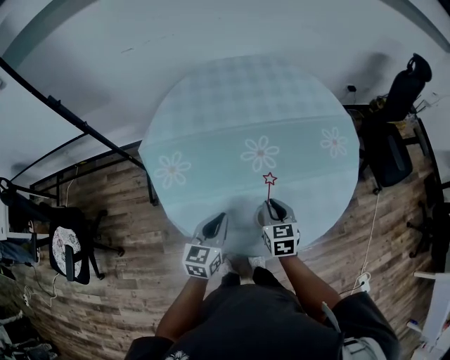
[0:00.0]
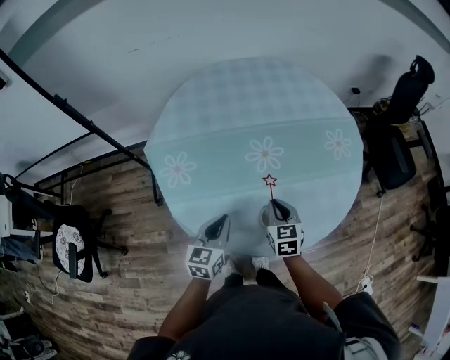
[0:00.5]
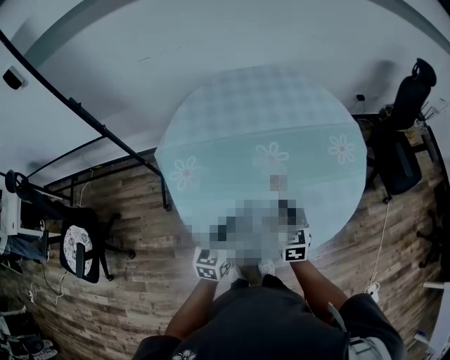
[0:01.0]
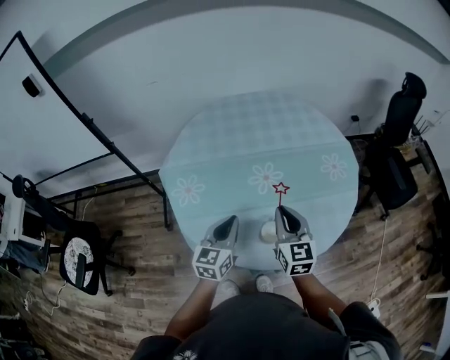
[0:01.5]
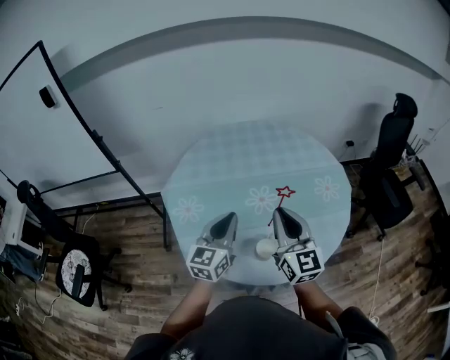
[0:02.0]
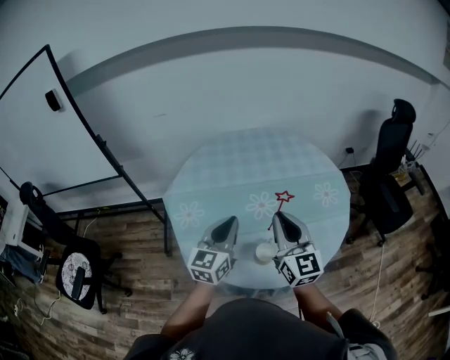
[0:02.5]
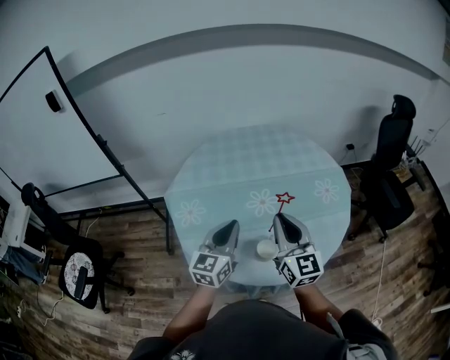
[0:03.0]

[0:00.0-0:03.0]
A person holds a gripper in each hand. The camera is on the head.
0:00.0 to 0:01.5: The right gripper shifts roughly 15 cm upward, and turns by approximately 20 degrees. The left gripper moves upward, some 10 cm.
0:01.5 to 0:03.0: Both grippers travel together upward, some 10 cm.

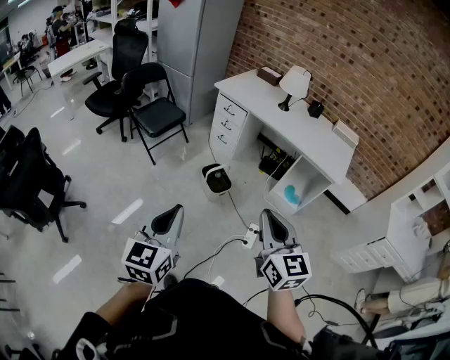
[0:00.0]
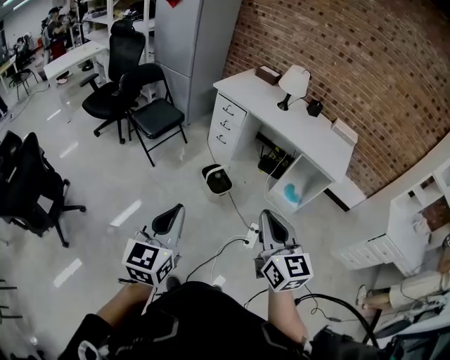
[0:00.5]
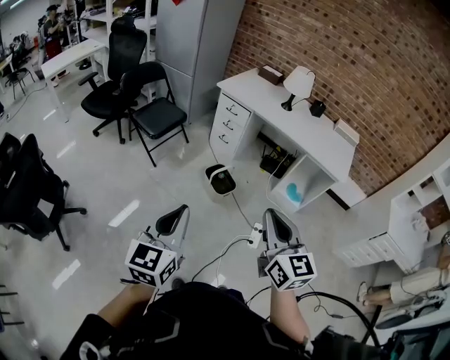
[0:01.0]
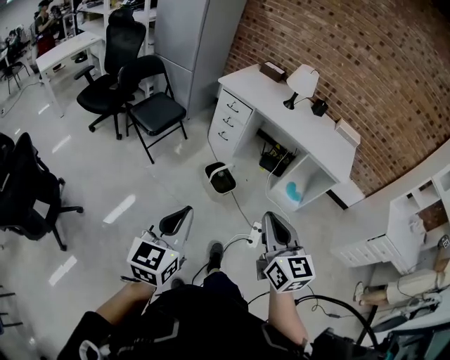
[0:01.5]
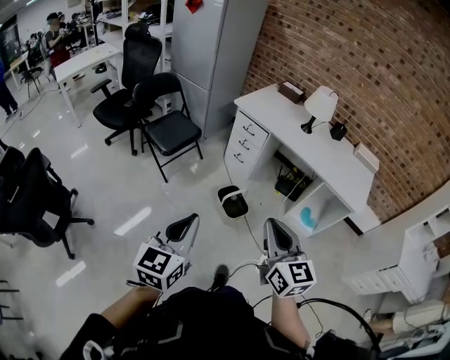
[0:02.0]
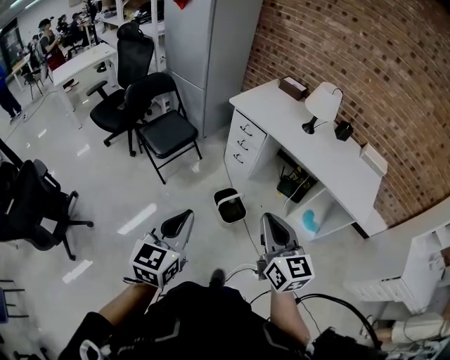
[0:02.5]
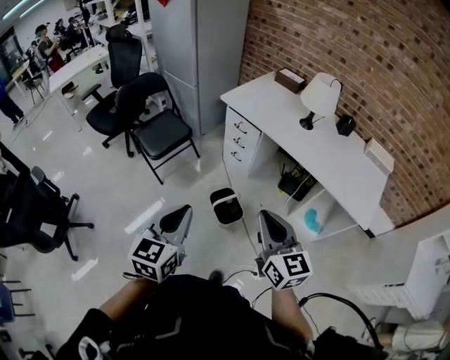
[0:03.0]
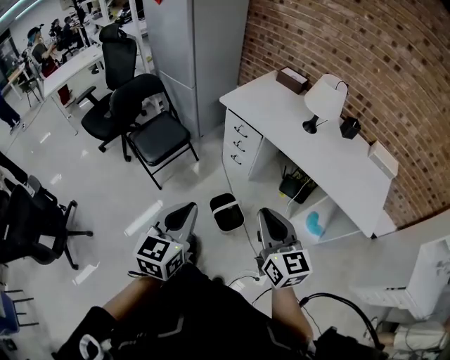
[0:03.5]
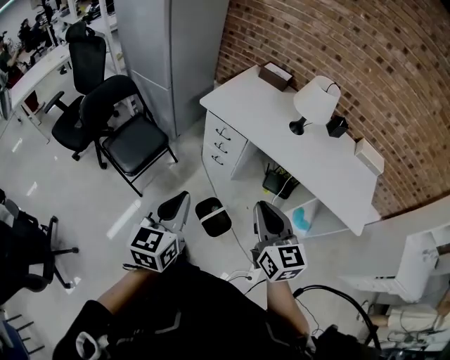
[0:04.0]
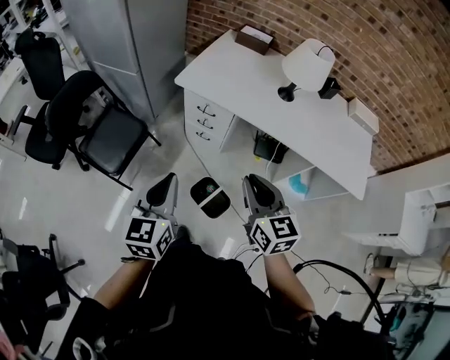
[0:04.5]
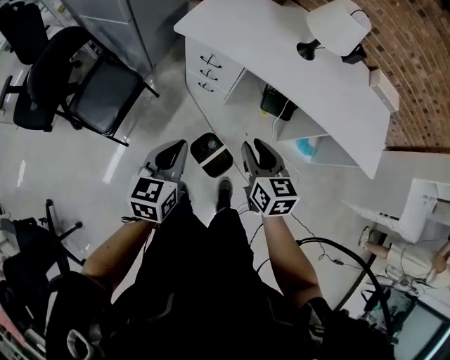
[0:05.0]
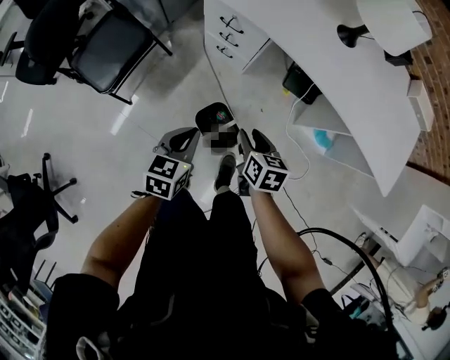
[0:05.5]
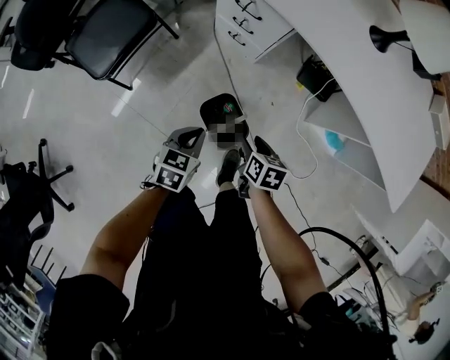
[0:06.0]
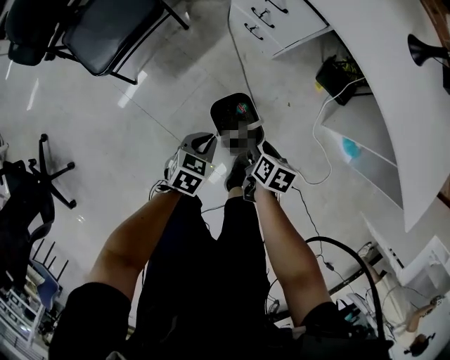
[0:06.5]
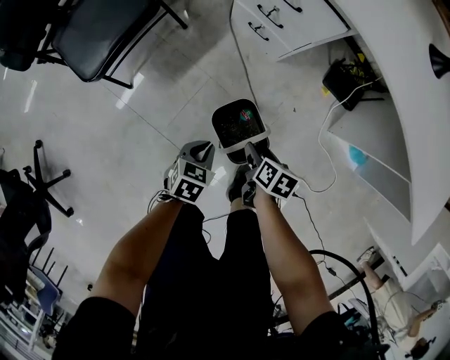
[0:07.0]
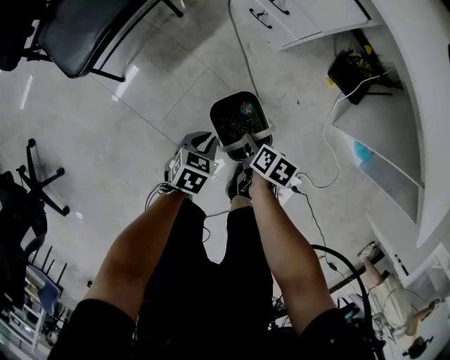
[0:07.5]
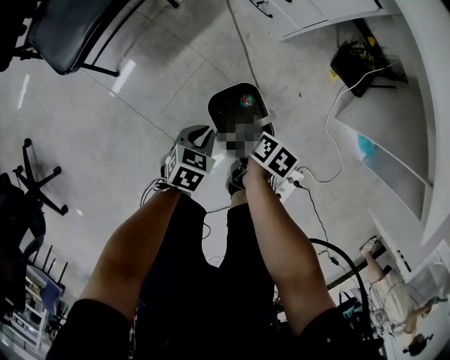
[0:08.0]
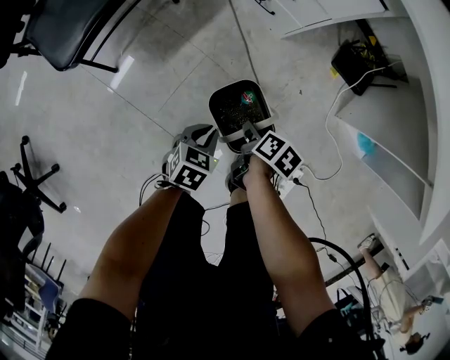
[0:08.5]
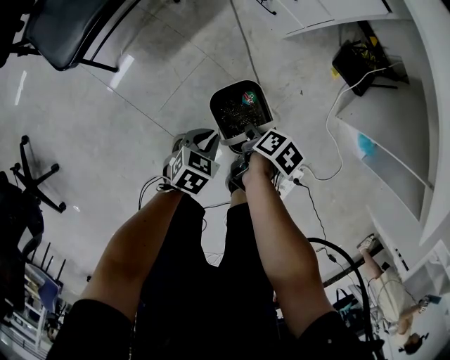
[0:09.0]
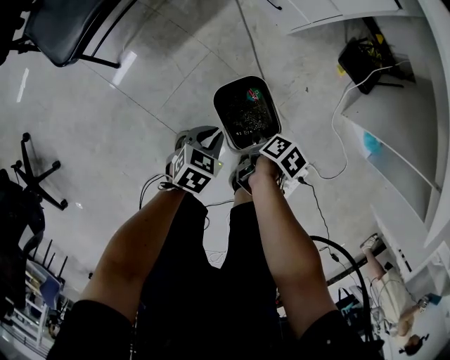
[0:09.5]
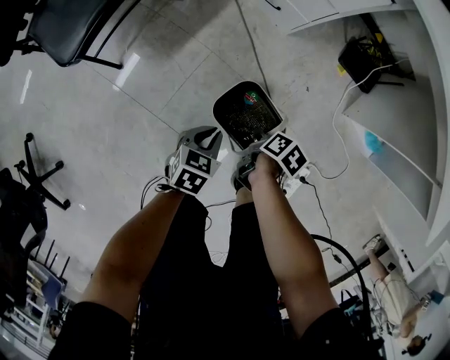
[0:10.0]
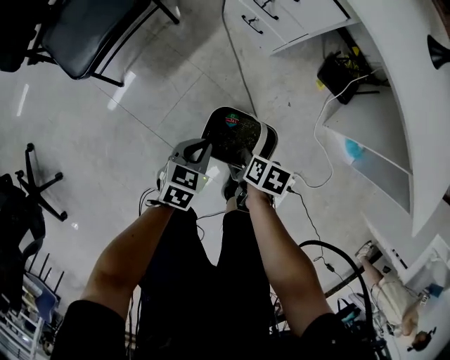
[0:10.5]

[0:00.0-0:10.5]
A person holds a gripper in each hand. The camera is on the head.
0:00.0 to 0:02.0: Both grippers move forward and to the left, approximately 15 cm.
0:02.0 to 0:04.0: Both grippers move forward, some 35 cm.
0:04.0 to 0:06.5: The grippers both shift downward by about 60 cm. The left gripper angles its fingers downward, by approximately 40 degrees, while the right gripper tilts its fingers some 50 degrees downward, and opens up.
0:06.5 to 0:08.5: The grippers both shift downward by approximately 15 cm. The right gripper turns by roughly 20 degrees.
0:08.5 to 0:10.5: The two grippers go some 10 cm upward. The right gripper swivels some 20 degrees, and closes.

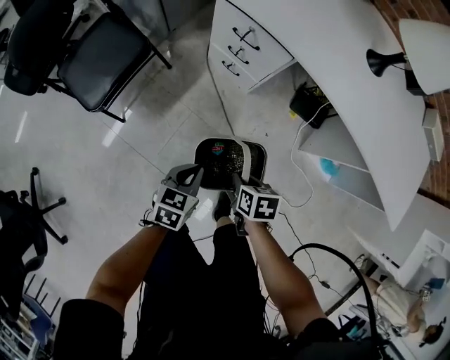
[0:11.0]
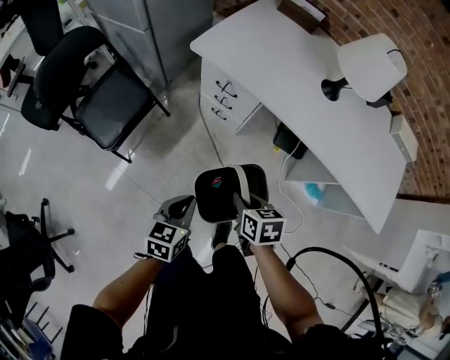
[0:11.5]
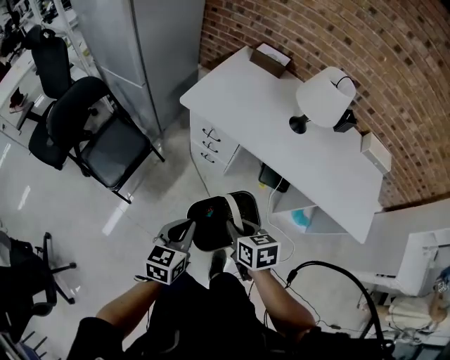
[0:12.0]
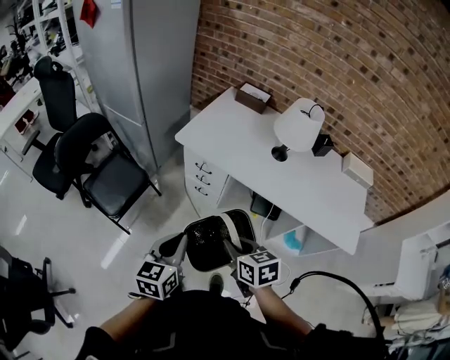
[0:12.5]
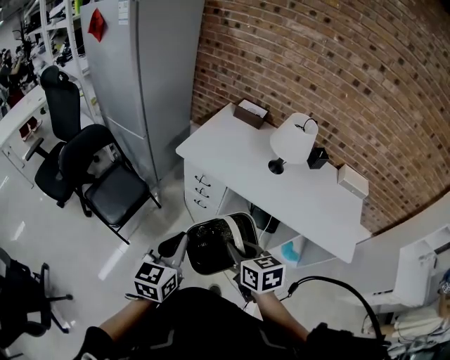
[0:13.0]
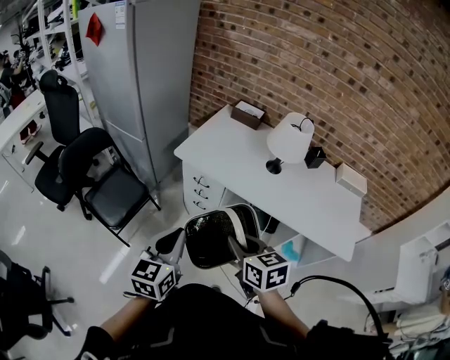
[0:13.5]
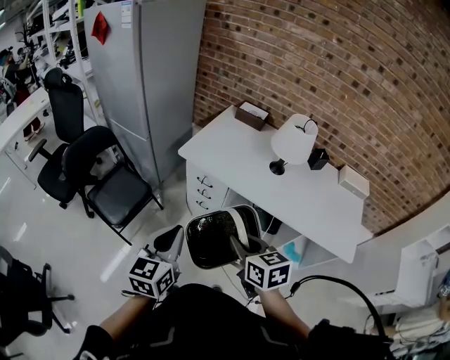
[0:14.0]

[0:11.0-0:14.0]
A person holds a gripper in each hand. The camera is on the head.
0:11.0 to 0:12.5: The two grippers go roughly 40 cm upward. The right gripper changes its angle by about 30 degrees. Meanwhile the left gripper changes its angle by approximately 30 degrees.
0:12.5 to 0:14.0: Both grippers travel together upward, approximately 10 cm.

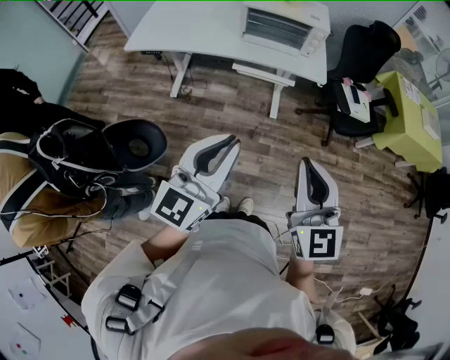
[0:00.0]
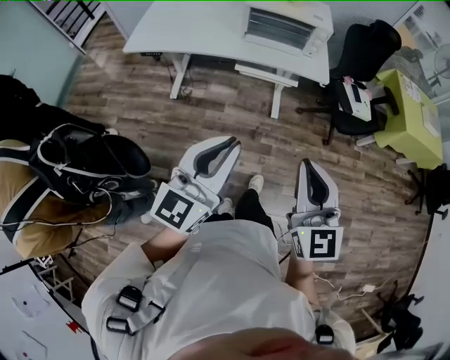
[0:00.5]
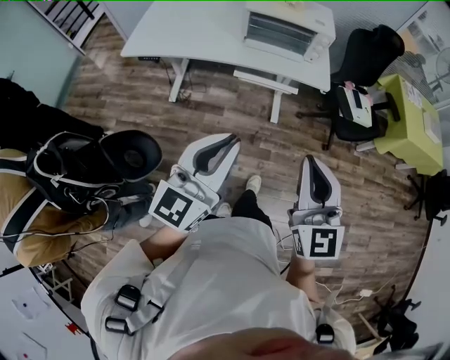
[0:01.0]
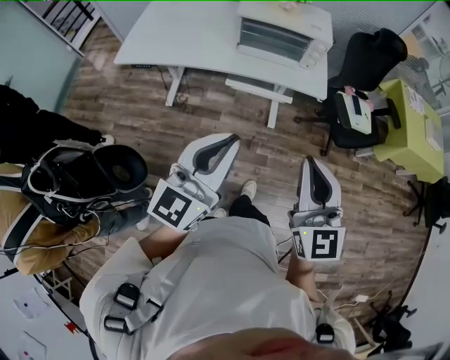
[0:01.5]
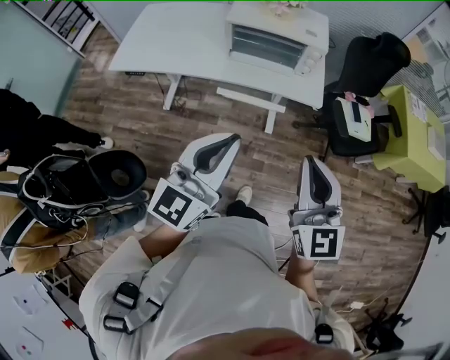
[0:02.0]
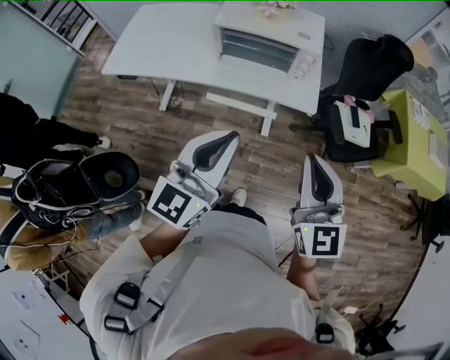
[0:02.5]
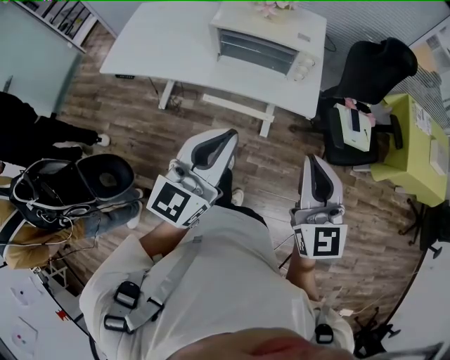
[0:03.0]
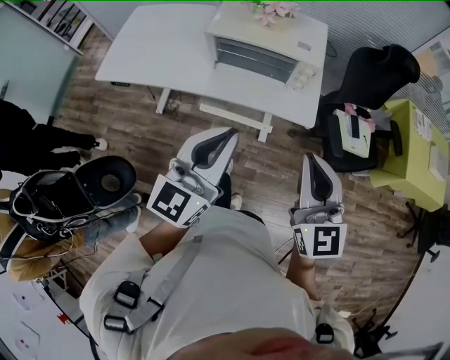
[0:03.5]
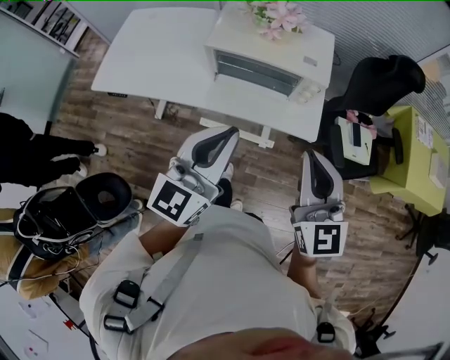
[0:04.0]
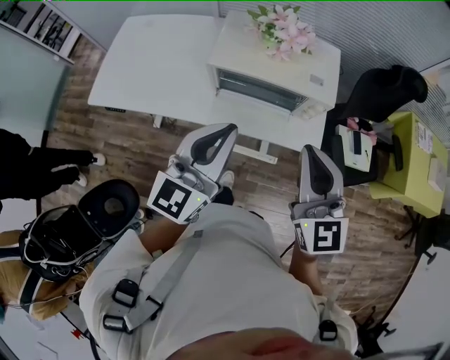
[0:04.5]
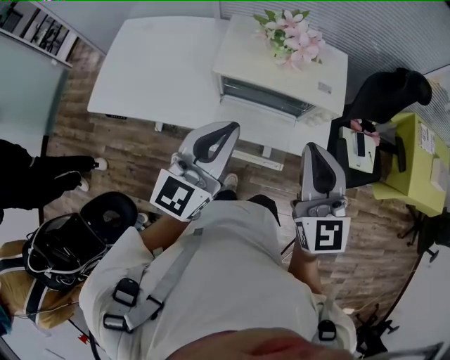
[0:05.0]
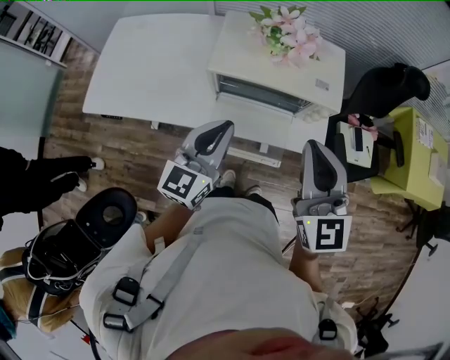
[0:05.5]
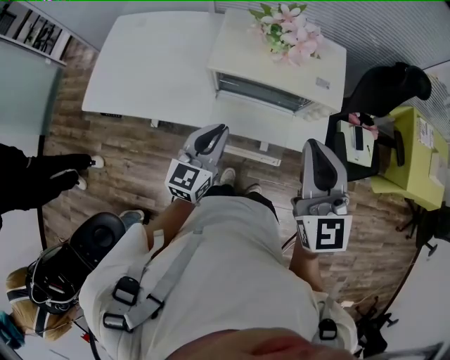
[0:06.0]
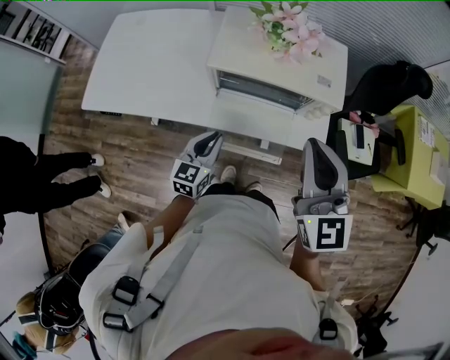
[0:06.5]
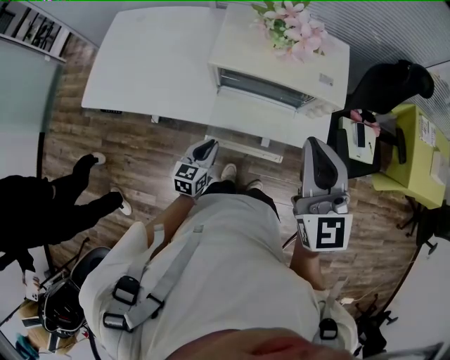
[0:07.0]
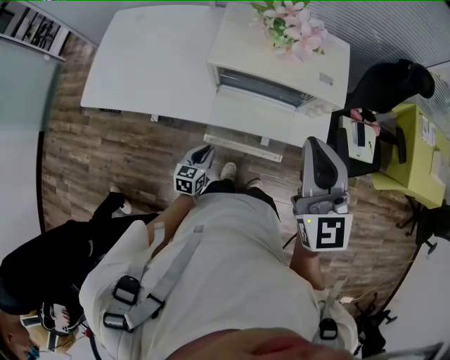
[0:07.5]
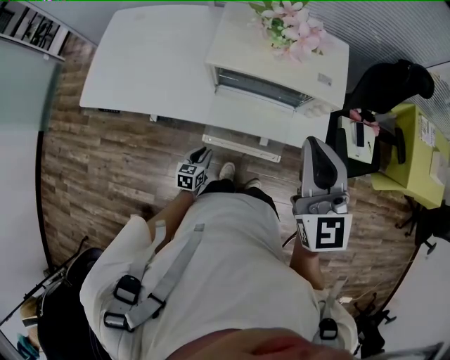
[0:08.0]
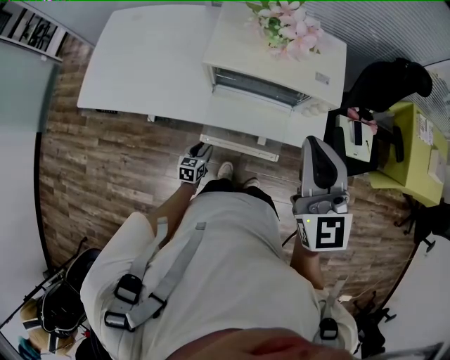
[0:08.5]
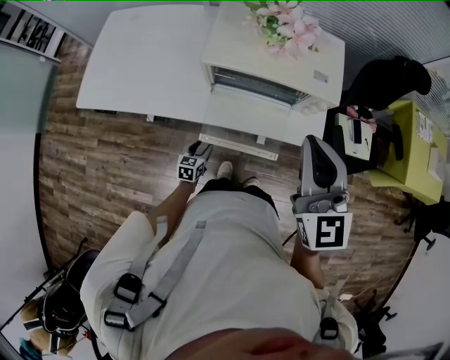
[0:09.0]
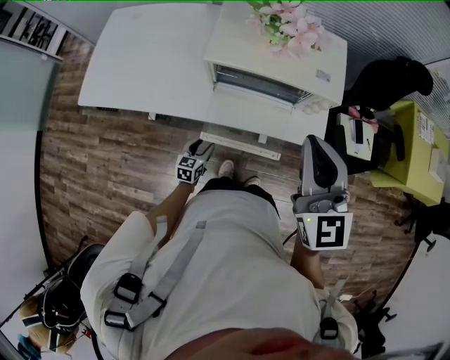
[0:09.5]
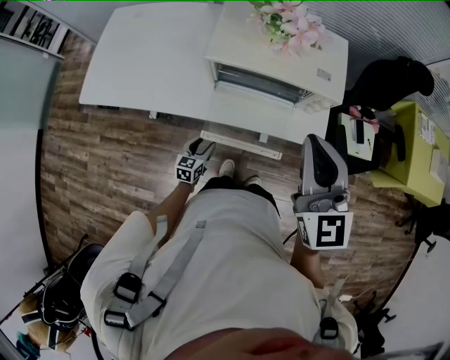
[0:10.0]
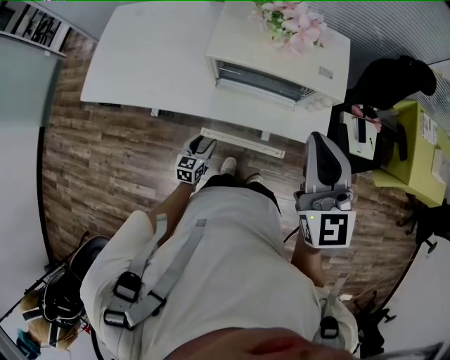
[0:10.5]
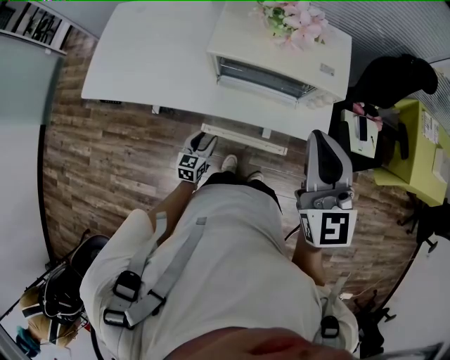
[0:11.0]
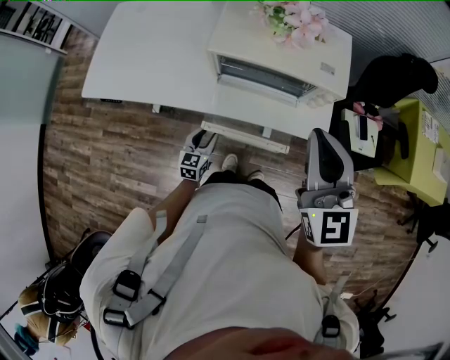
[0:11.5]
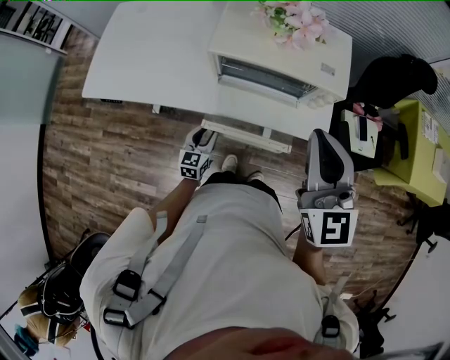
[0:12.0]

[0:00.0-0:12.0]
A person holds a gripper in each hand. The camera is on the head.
0:00.0 to 0:02.0: The two grippers go approximately 20 cm forward.
0:02.0 to 0:04.0: The two grippers go roughly 25 cm forward.
0:04.0 to 0:06.0: The right gripper shifts some 15 cm forward and to the left, while the left gripper shifts about 25 cm downward, forward and to the left.
0:06.0 to 0:08.0: The left gripper moves downward, about 30 cm, and turns by some 30 degrees.
0:08.0 to 0:10.0: The left gripper opens its fingers.
0:10.0 to 0:12.0: The left gripper goes approximately 10 cm upward.
